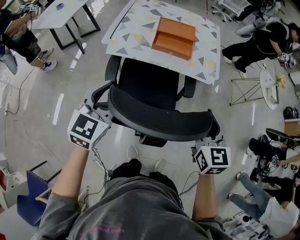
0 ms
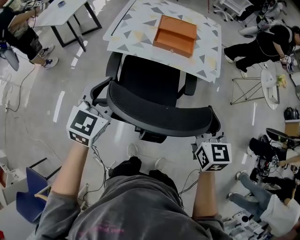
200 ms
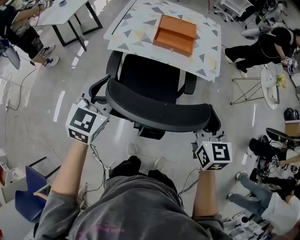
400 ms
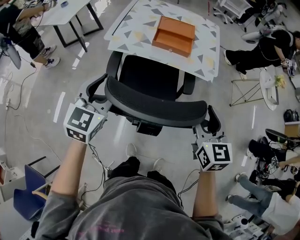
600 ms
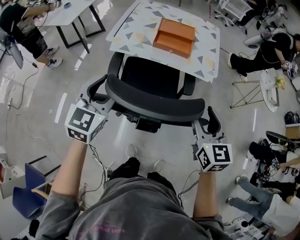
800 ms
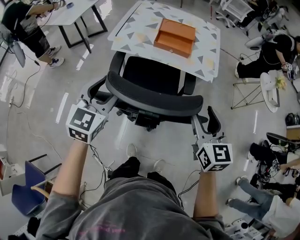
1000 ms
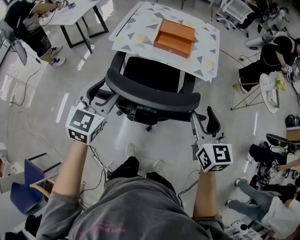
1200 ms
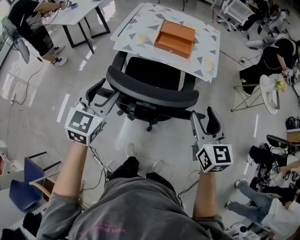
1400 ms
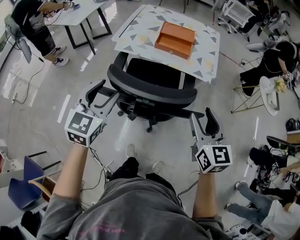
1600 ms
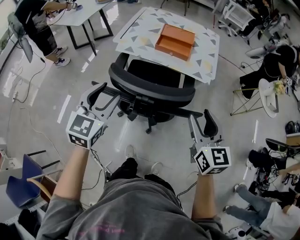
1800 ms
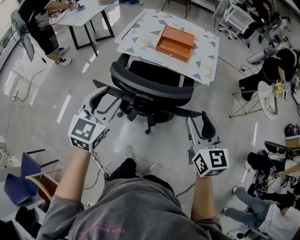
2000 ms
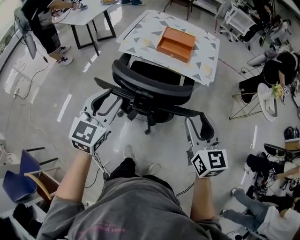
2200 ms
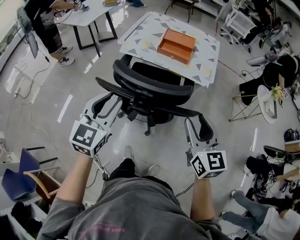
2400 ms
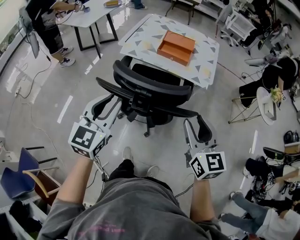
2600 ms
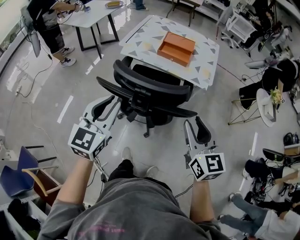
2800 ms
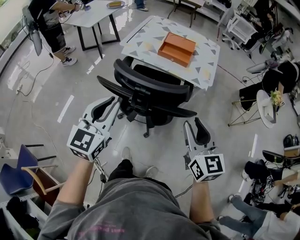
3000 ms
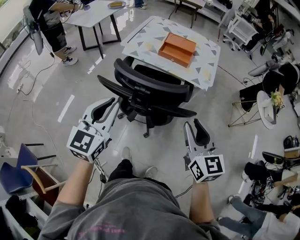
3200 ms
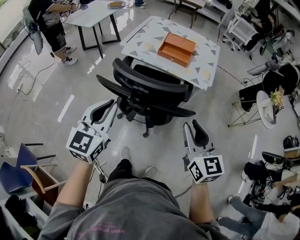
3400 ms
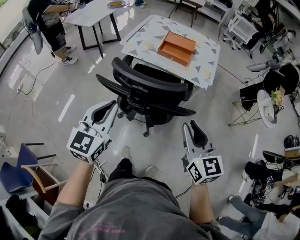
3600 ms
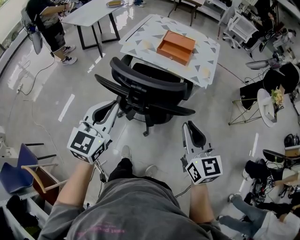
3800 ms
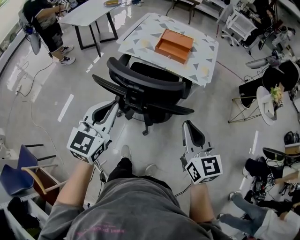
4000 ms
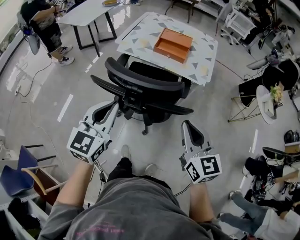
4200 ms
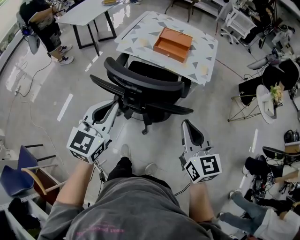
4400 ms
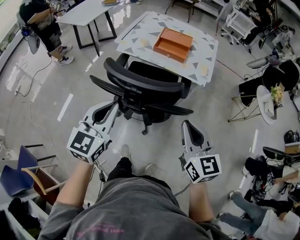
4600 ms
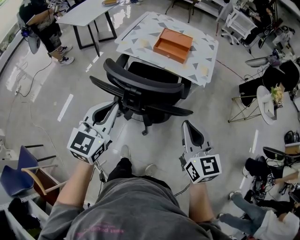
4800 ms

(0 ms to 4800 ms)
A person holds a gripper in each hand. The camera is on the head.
0 ms - 1600 ms: Both grippers travel together backward, some 10 cm.
1600 ms - 3200 ms: The grippers both shift backward by some 10 cm. The left gripper closes its fingers, while the right gripper closes up.
3200 ms - 4800 ms: The right gripper closes up.

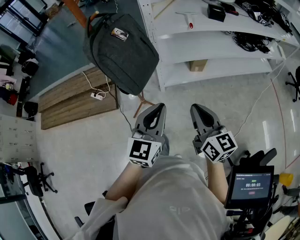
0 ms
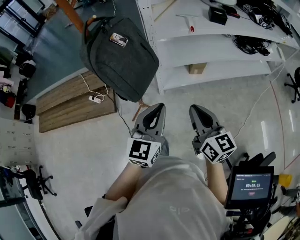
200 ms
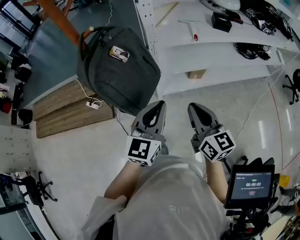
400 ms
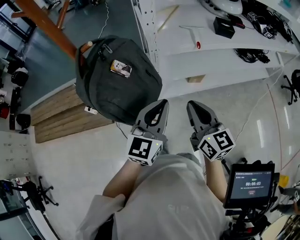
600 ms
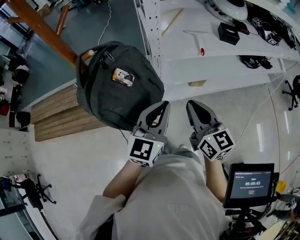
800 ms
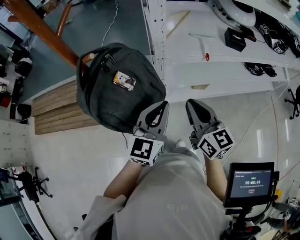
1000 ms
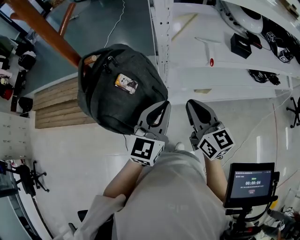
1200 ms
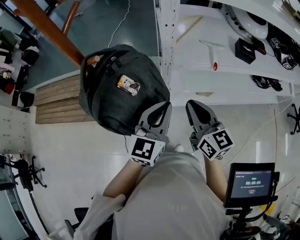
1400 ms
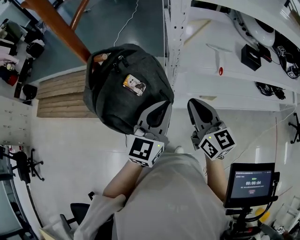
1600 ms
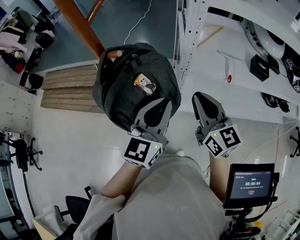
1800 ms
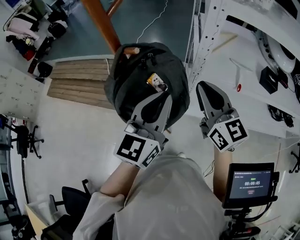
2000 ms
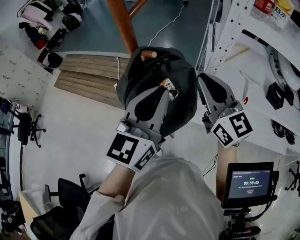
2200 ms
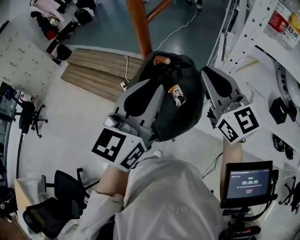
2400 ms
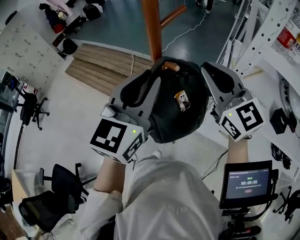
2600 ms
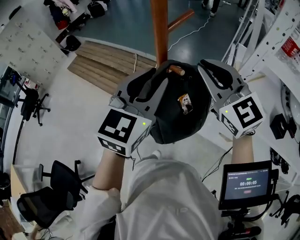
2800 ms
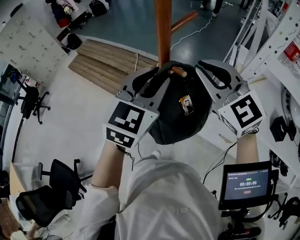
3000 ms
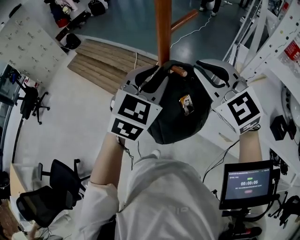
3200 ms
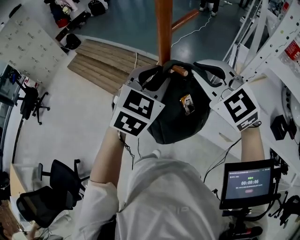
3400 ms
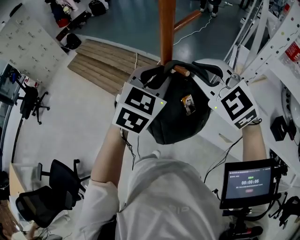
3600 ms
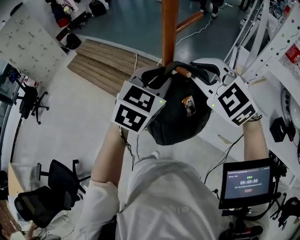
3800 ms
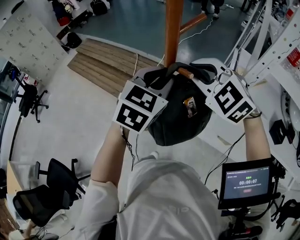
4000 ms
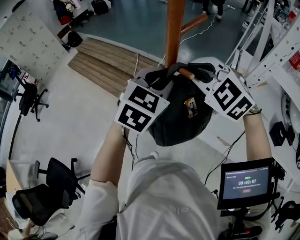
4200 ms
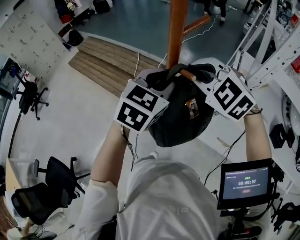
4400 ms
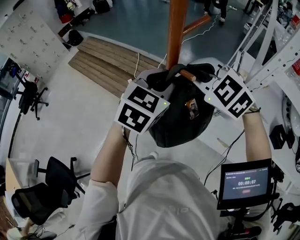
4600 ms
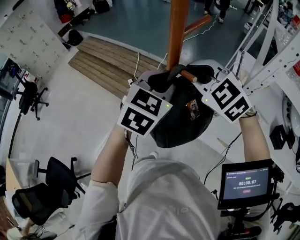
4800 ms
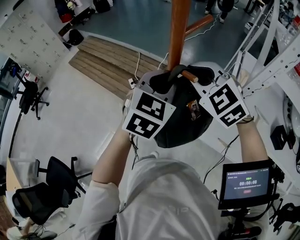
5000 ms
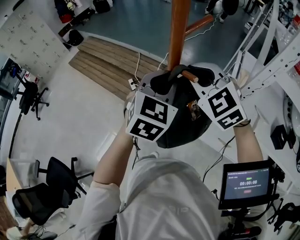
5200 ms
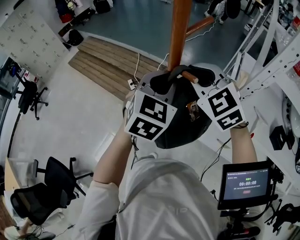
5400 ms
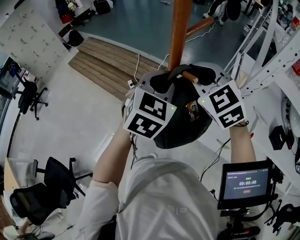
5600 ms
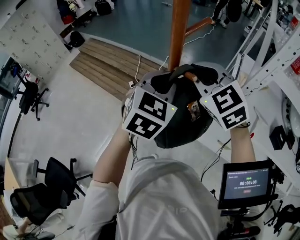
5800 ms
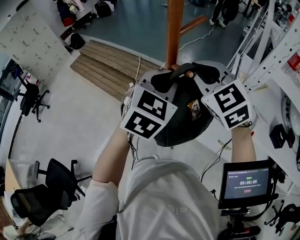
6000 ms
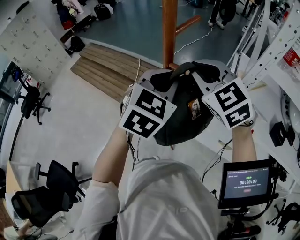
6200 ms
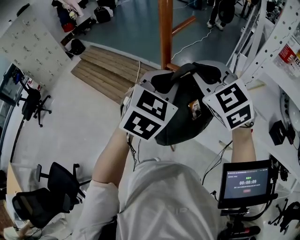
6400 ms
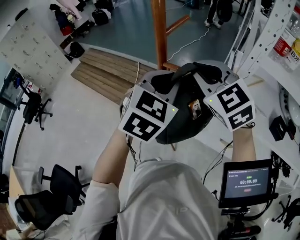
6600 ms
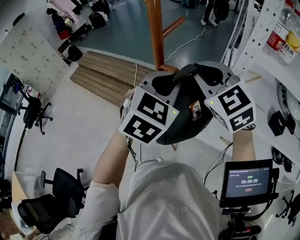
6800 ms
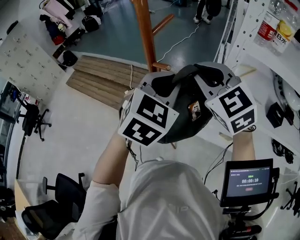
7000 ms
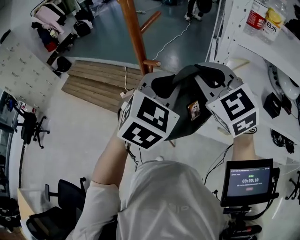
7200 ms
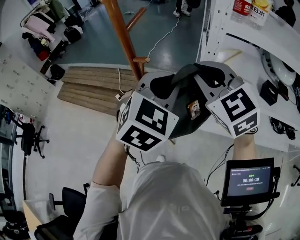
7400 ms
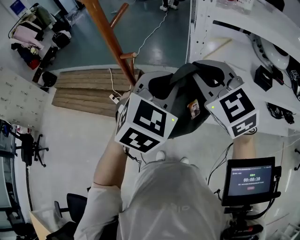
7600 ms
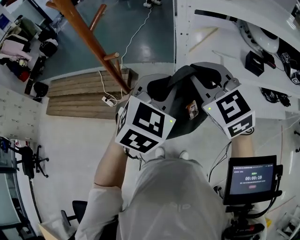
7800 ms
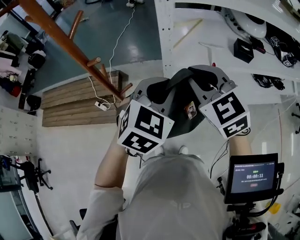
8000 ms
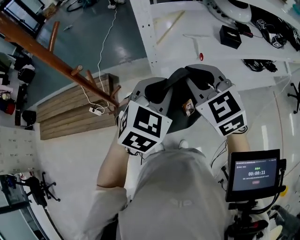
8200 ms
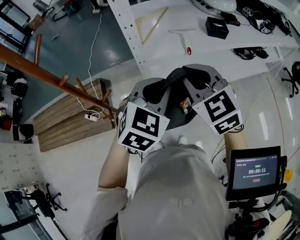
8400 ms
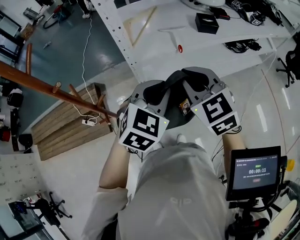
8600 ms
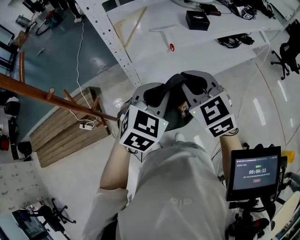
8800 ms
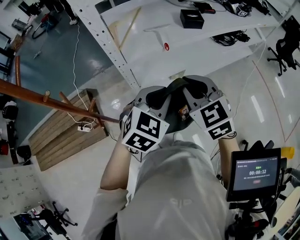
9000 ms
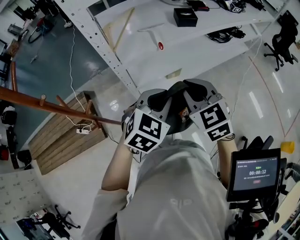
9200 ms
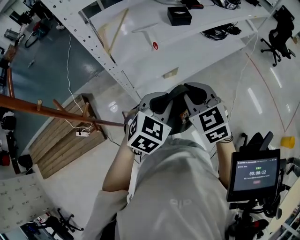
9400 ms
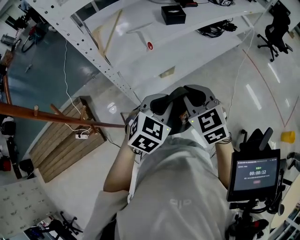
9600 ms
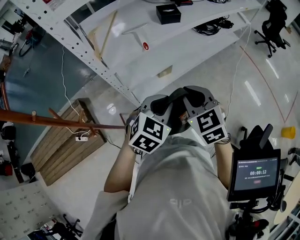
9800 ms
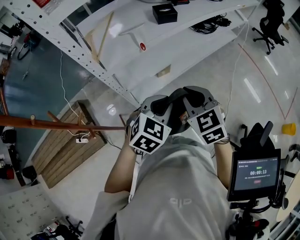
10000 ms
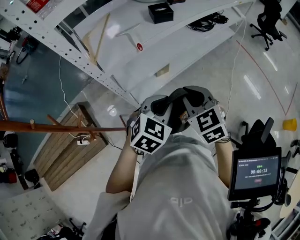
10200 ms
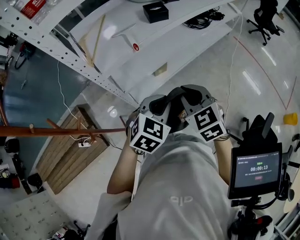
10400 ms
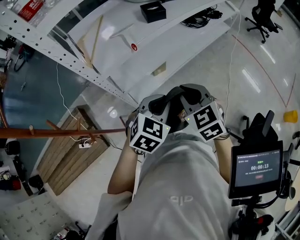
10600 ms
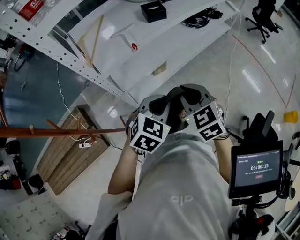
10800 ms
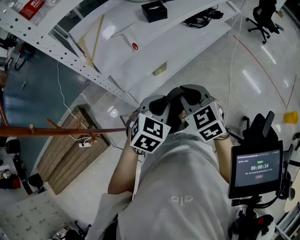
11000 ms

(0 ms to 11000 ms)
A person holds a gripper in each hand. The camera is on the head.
0 ms - 1600 ms: The two grippers go some 30 cm forward.
1600 ms - 3200 ms: The left gripper changes place by roughly 25 cm, rotates roughly 40 degrees, and opens up; the right gripper shifts by about 30 cm, and turns by roughly 60 degrees.
3200 ms - 4800 ms: The right gripper changes place by some 10 cm.
4800 ms - 6200 ms: There are only small adjustments of the grippers.
6200 ms - 7800 ms: The left gripper ends up some 20 cm from where it was, and rotates approximately 30 degrees, while the right gripper moves about 20 cm, and swivels approximately 30 degrees.
7800 ms - 9400 ms: The right gripper changes place by some 30 cm, and changes its angle by approximately 40 degrees. Meanwhile the left gripper moves some 25 cm, and turns by about 40 degrees.
9400 ms - 11000 ms: The left gripper moves approximately 5 cm, while the right gripper ends up approximately 5 cm from where it was.

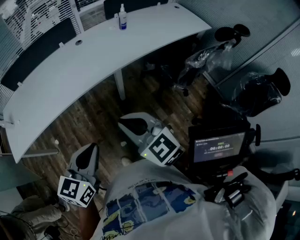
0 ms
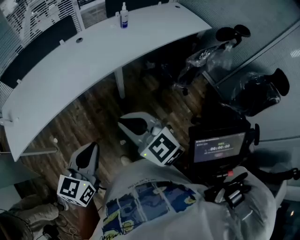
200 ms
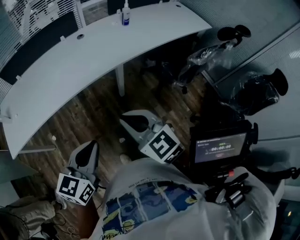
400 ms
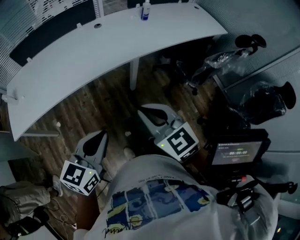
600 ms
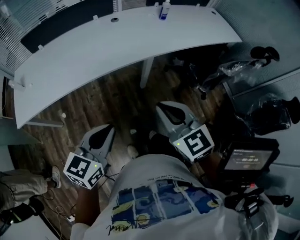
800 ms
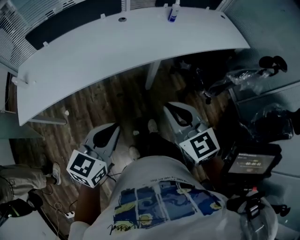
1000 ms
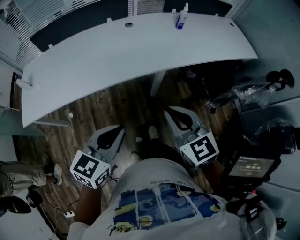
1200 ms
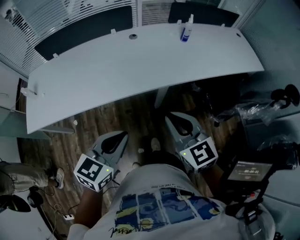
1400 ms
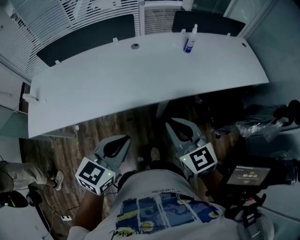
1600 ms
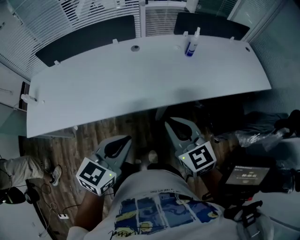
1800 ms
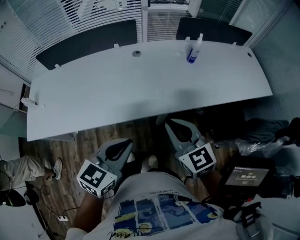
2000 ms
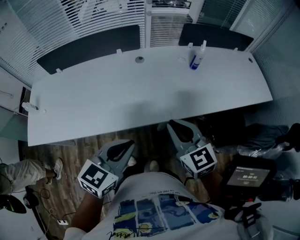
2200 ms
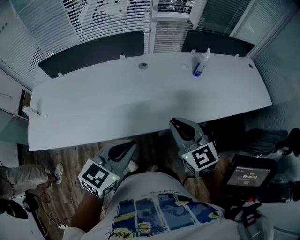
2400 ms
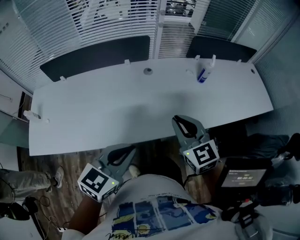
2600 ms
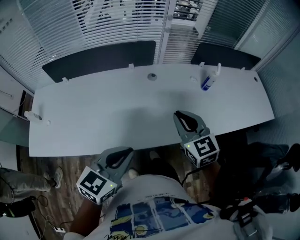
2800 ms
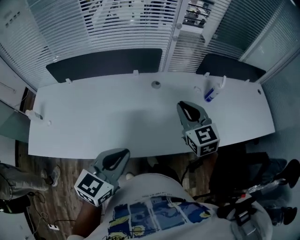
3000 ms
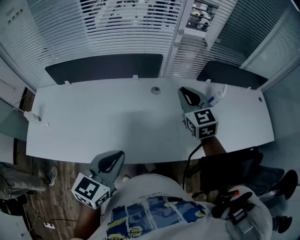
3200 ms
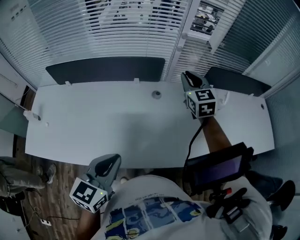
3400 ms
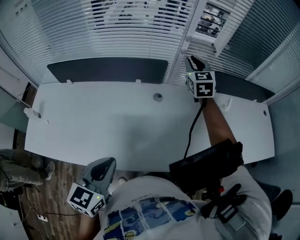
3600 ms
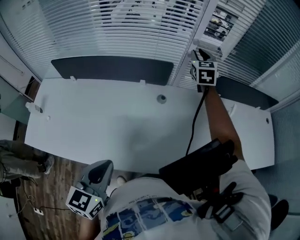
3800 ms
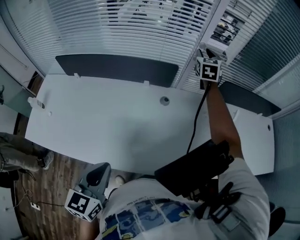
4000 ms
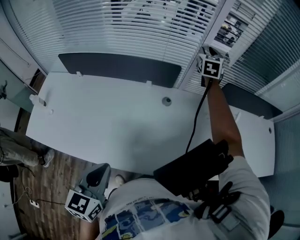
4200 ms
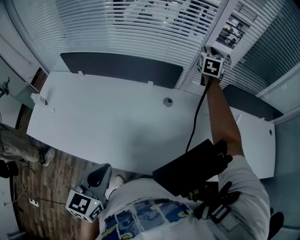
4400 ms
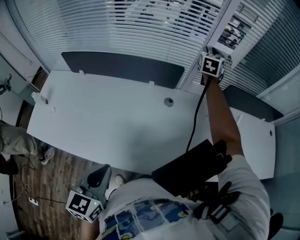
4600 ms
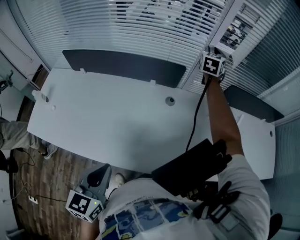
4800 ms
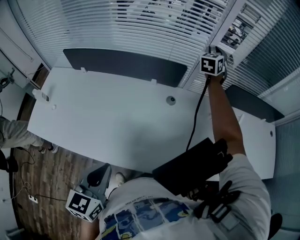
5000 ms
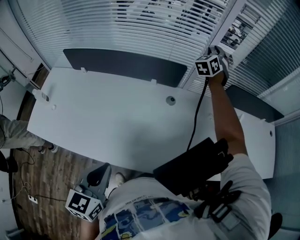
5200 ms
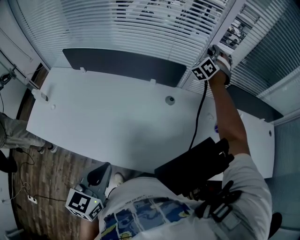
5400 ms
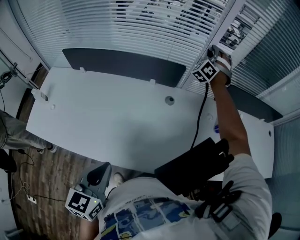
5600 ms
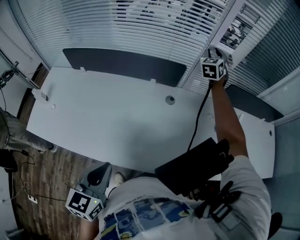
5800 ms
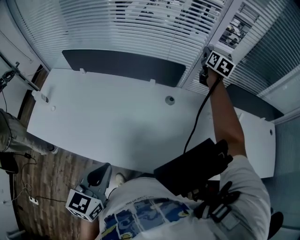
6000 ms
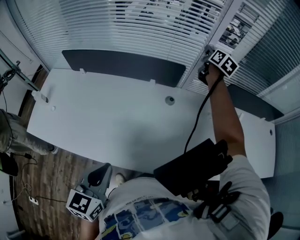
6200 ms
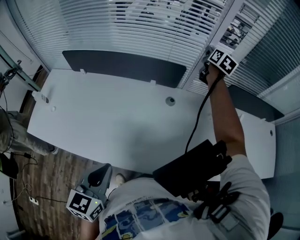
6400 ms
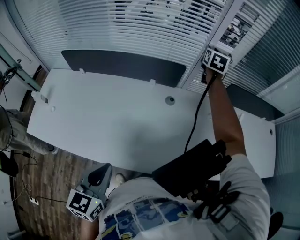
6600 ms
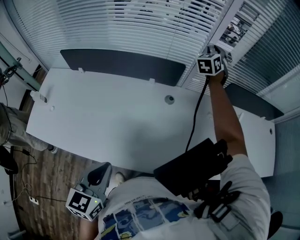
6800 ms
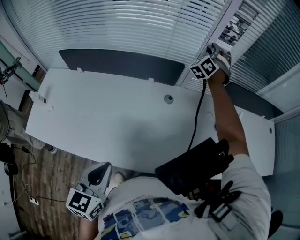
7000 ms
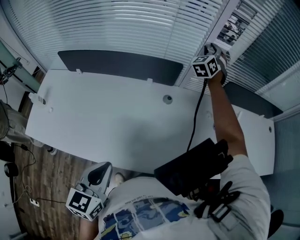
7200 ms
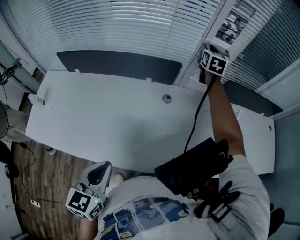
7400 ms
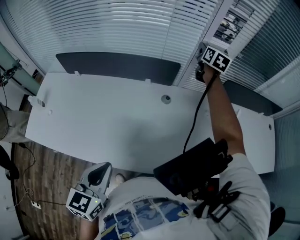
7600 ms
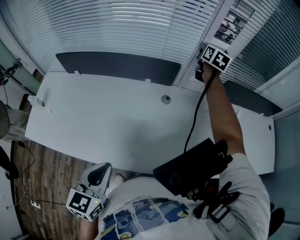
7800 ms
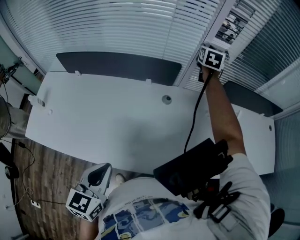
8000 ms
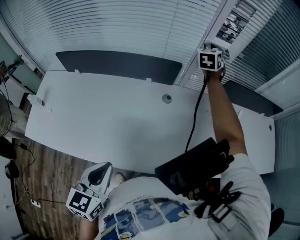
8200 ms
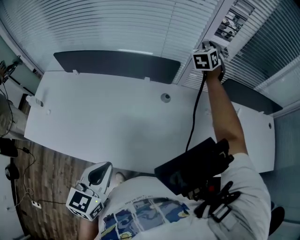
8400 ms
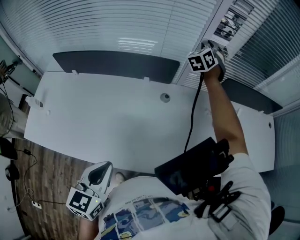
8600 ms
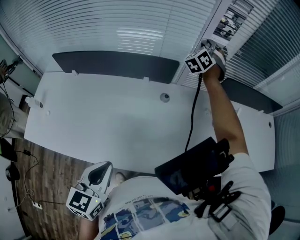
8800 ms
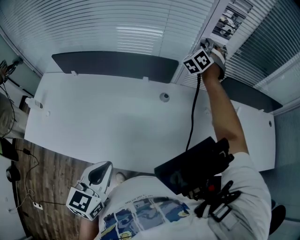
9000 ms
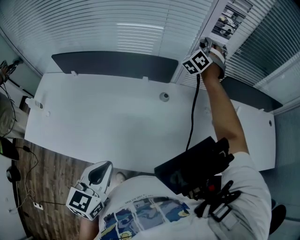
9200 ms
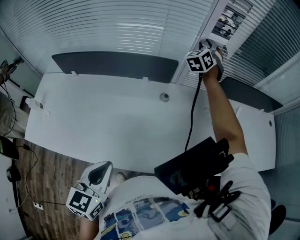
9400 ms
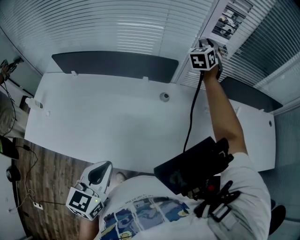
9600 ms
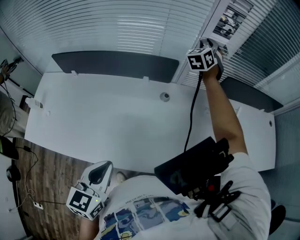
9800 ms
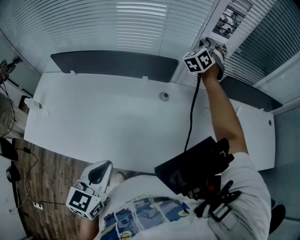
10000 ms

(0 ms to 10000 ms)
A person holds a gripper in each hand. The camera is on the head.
0 ms - 1400 ms: Both grippers travel together forward, some 15 cm.
1400 ms - 2800 ms: Both grippers move forward, approximately 25 cm.
2800 ms - 4200 ms: The right gripper is displaced forward by about 50 cm, changes its angle by about 20 degrees, and opens up, while the left gripper is displaced forward and to the left by some 10 cm, and swivels about 40 degrees.
